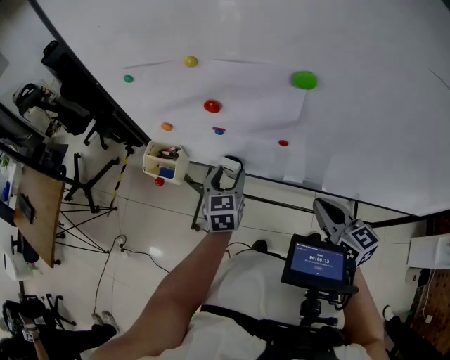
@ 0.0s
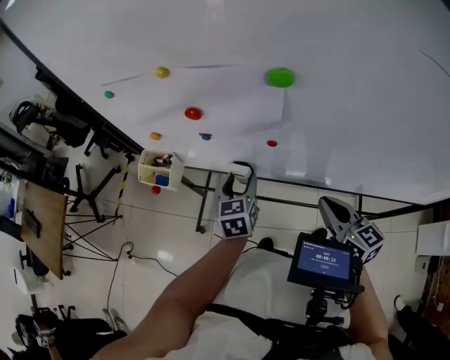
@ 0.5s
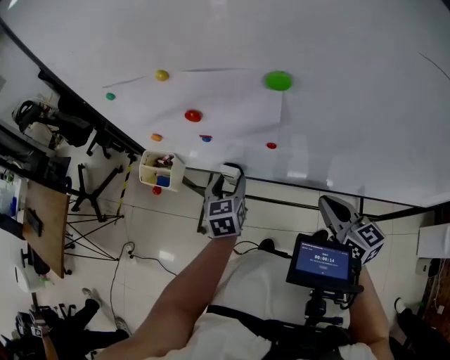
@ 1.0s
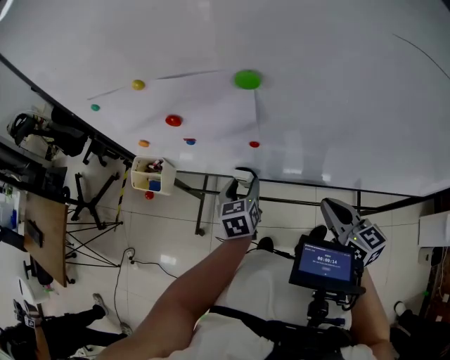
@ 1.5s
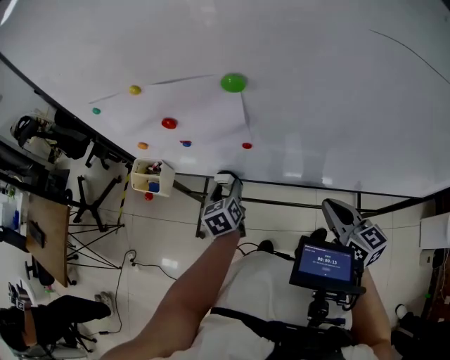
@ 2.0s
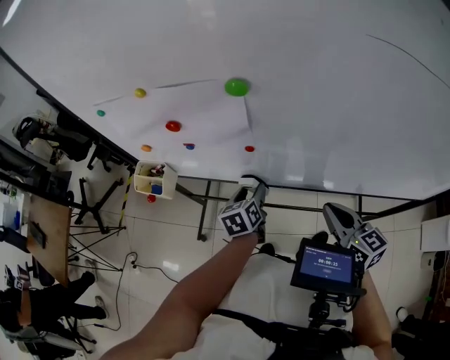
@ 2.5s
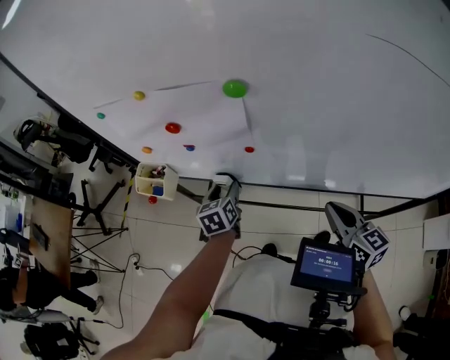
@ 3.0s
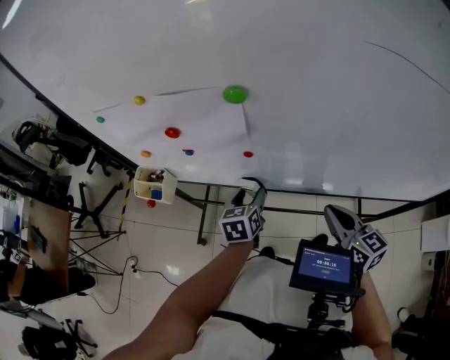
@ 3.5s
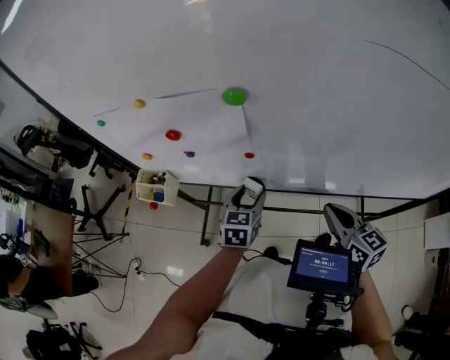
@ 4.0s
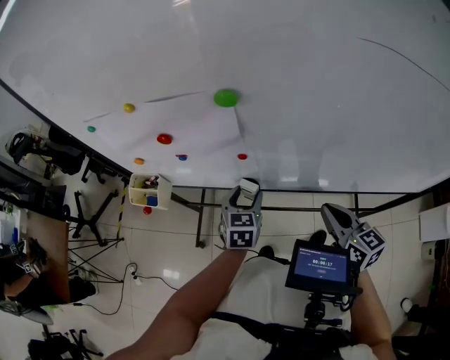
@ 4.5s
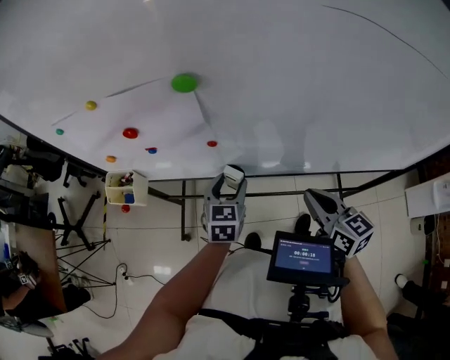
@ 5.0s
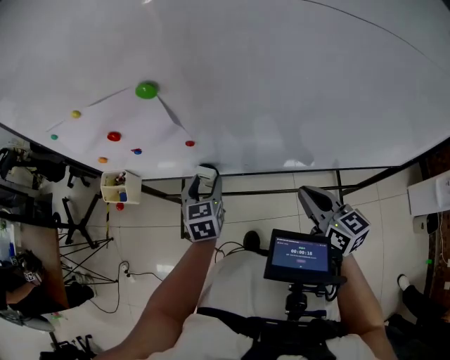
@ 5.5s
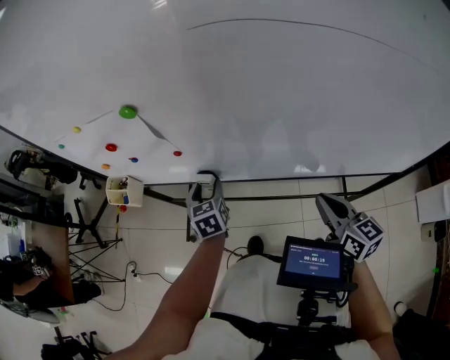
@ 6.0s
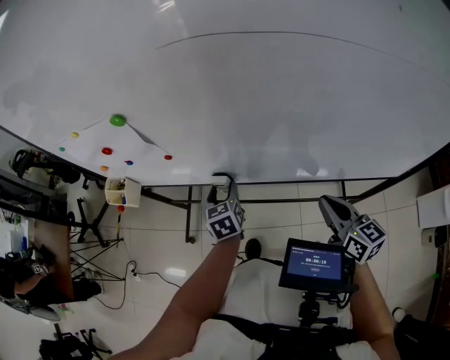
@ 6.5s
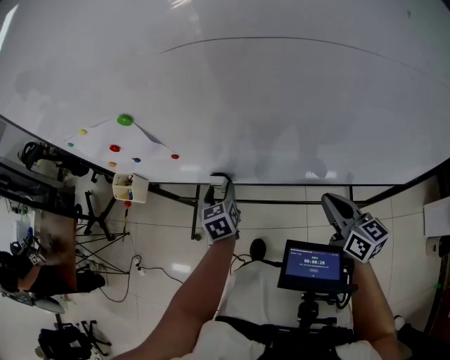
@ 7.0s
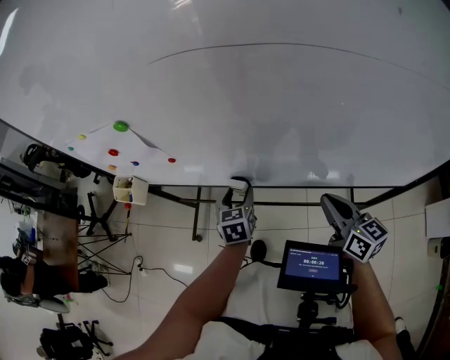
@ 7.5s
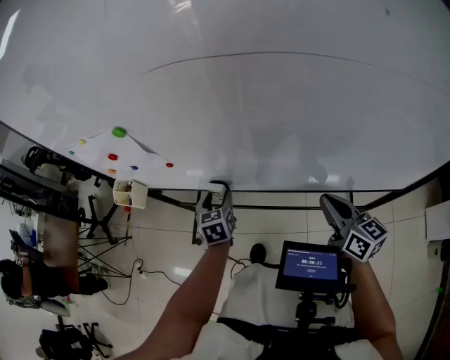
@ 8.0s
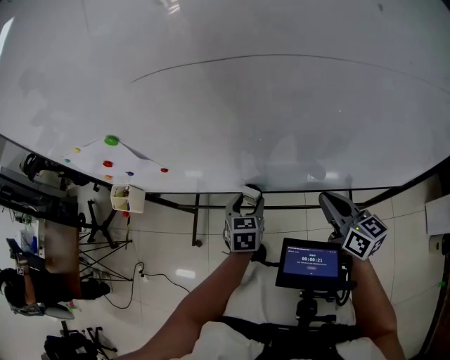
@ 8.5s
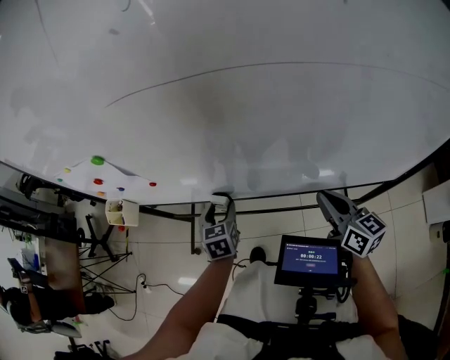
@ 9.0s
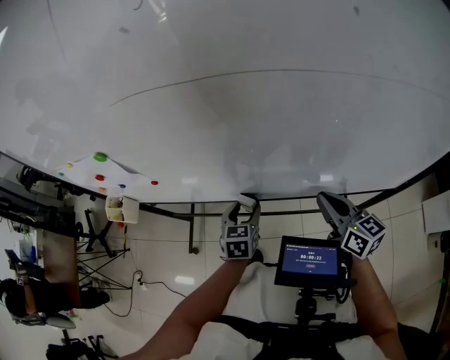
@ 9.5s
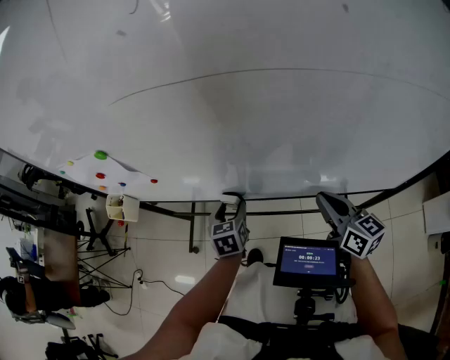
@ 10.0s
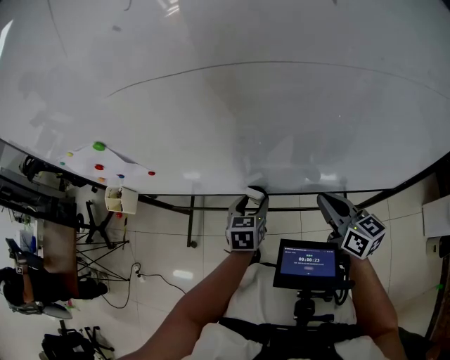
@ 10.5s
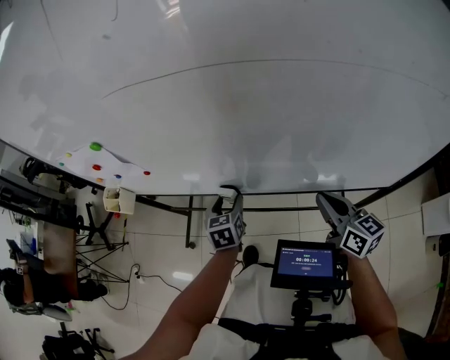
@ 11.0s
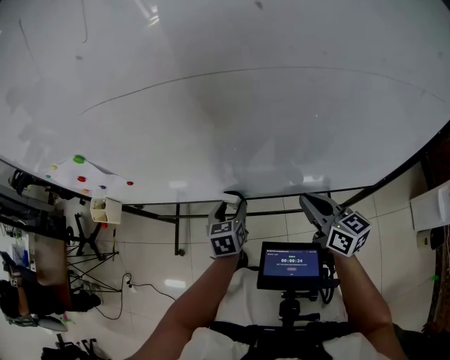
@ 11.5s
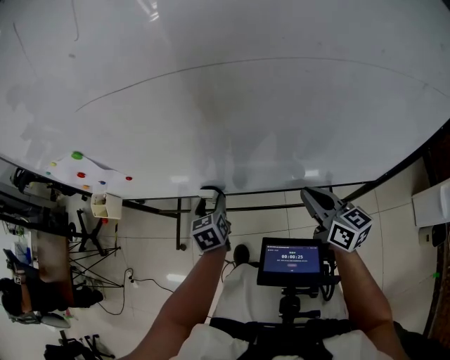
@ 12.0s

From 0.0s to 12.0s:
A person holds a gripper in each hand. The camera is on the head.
From 0.0s to 2.0s: The left gripper goes some 5 cm downward. Meanwhile the right gripper heads to the right, covering some 10 cm.
From 2.0s to 4.0s: The left gripper goes left and right, approximately 10 cm each way, reversing 2 times, and rotates roughly 30 degrees.
From 4.0s to 6.0s: The left gripper turns by about 20 degrees; the right gripper shifts about 15 cm to the right and backward.
From 6.0s to 8.0s: Both grippers move to the right, approximately 10 cm.
From 8.0s to 10.0s: The left gripper moves left and right over roughly 15 cm, changing direction 3 times.
From 10.0s to 12.0s: The left gripper moves left and right over about 10 cm, changing direction 3 times, while the right gripper shifts by some 5 cm.

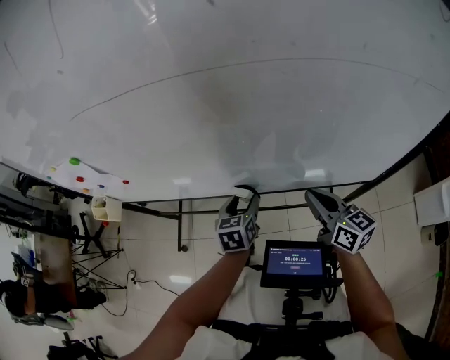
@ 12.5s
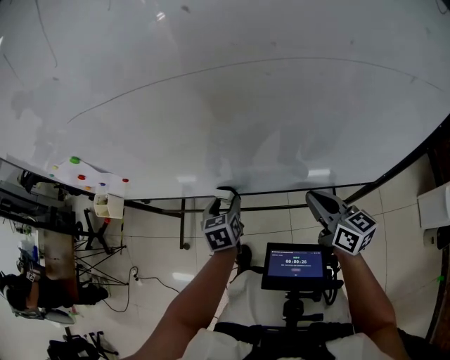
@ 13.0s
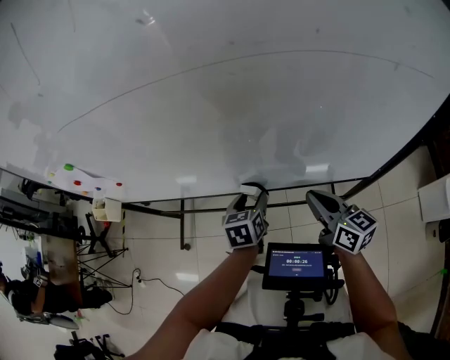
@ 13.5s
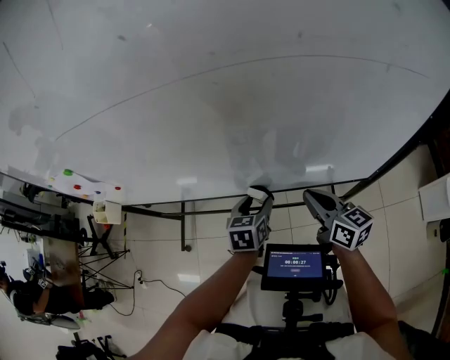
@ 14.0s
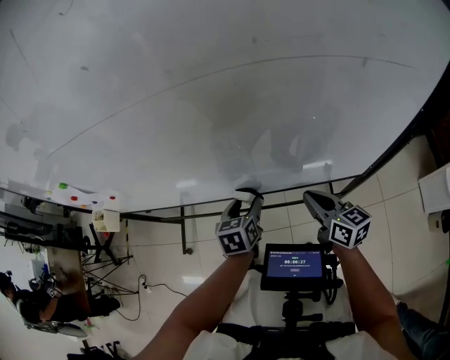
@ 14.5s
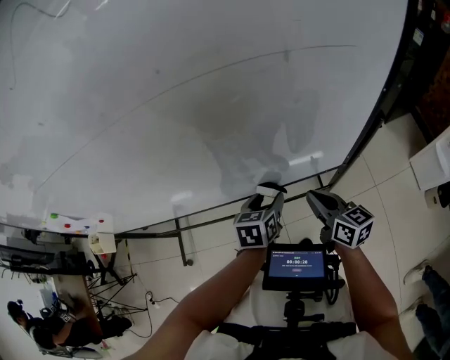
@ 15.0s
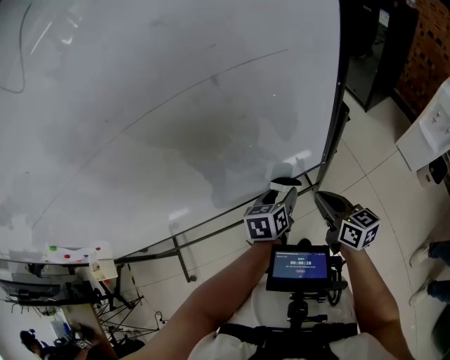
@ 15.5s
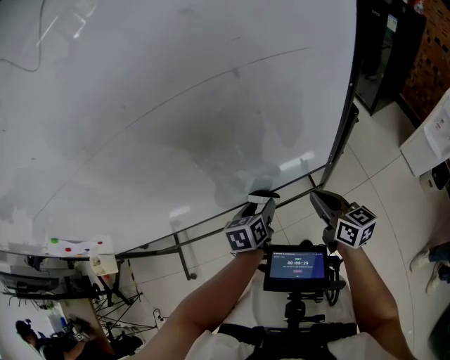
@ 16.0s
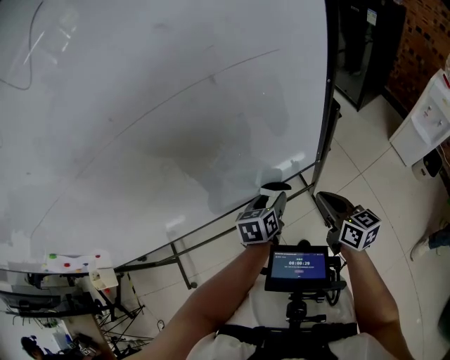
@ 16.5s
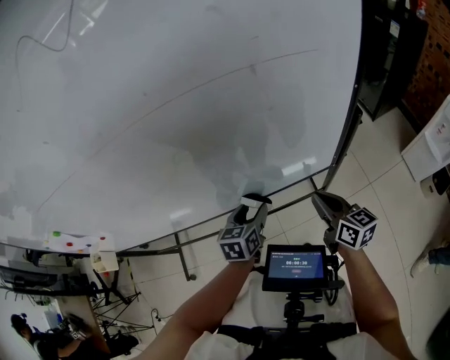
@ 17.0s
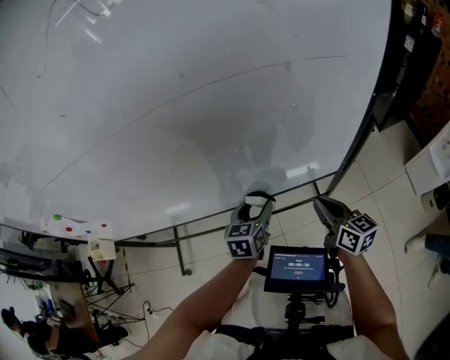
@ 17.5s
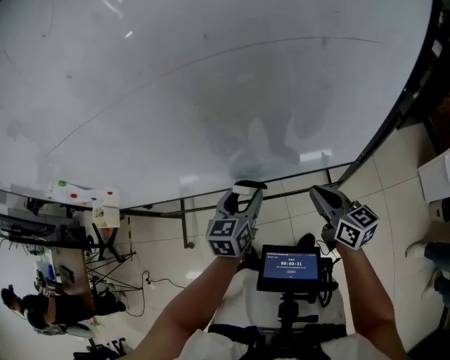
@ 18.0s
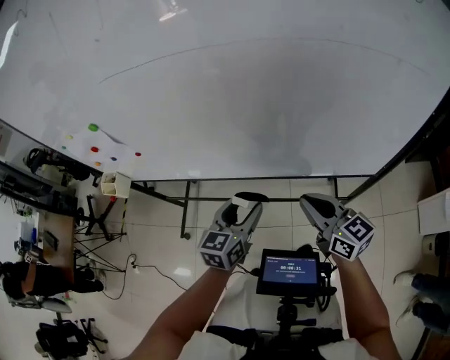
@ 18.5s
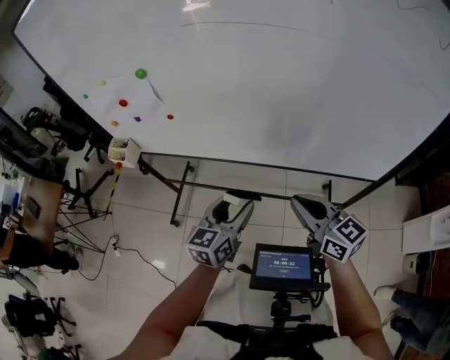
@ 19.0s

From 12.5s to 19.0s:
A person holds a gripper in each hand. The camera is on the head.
From 12.5s to 14.5s: The left gripper shifts approximately 10 cm to the right, while the right gripper goes about 10 cm to the right and downward.
From 14.5s to 17.0s: The right gripper changes place by roughly 15 cm. Meanwhile the left gripper changes its angle by about 20 degrees.
From 17.0s to 19.0s: The left gripper heads to the left and backward, covering roughly 35 cm, and turns by some 30 degrees, while the right gripper shifts about 35 cm to the left, and changes its angle by approximately 40 degrees.

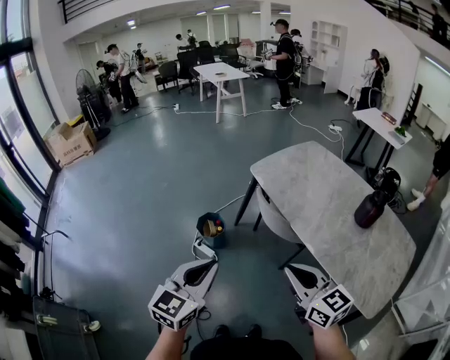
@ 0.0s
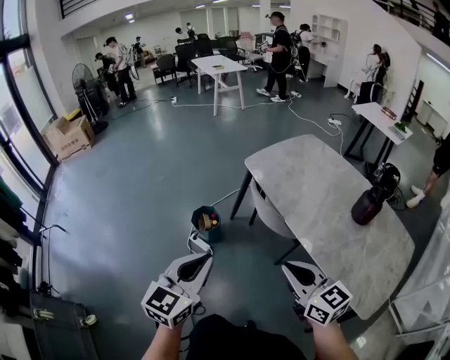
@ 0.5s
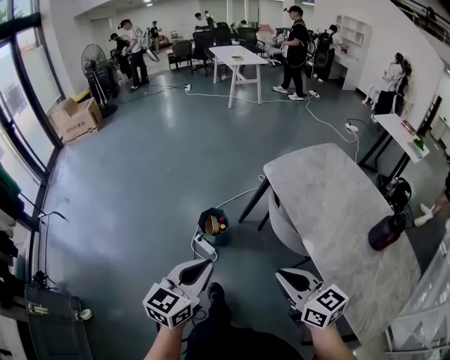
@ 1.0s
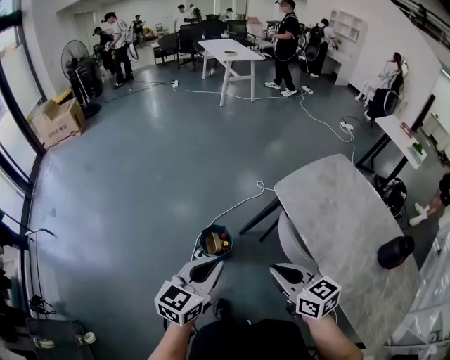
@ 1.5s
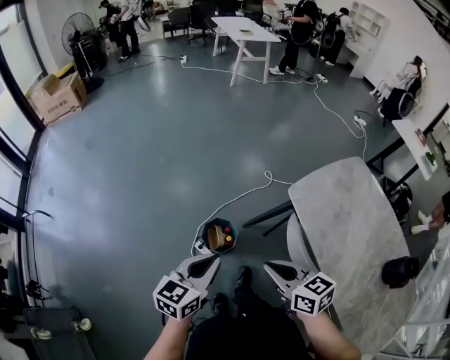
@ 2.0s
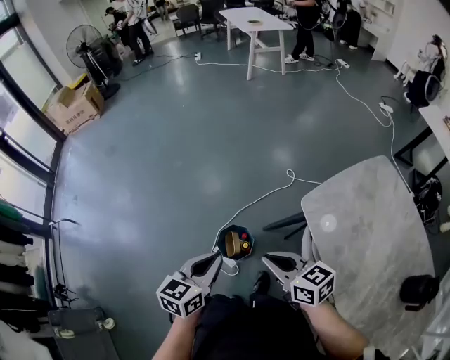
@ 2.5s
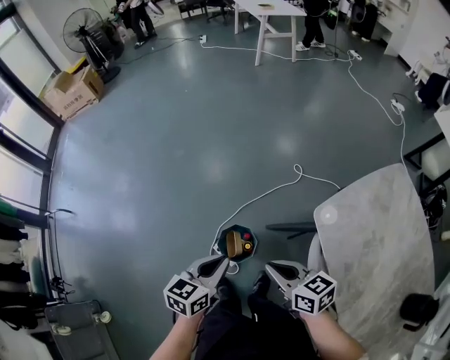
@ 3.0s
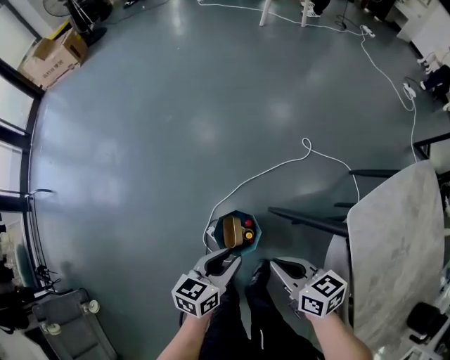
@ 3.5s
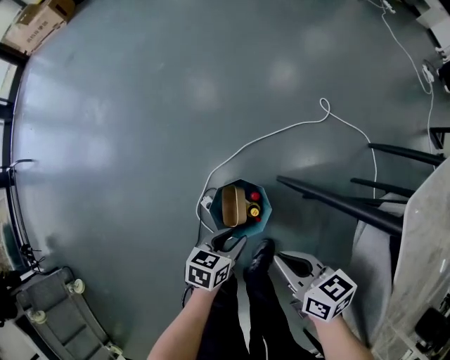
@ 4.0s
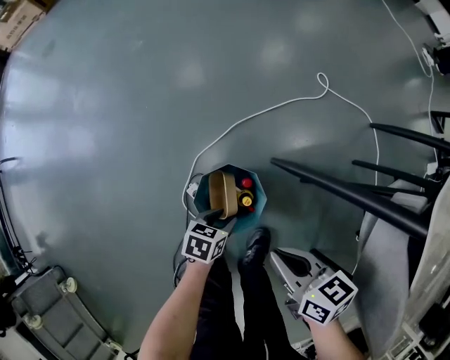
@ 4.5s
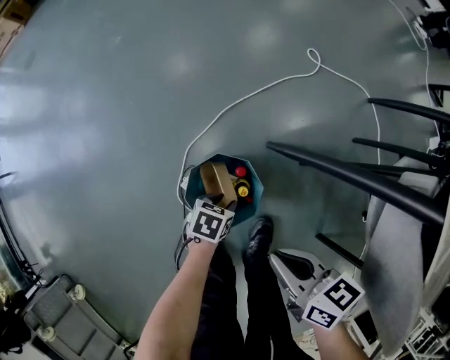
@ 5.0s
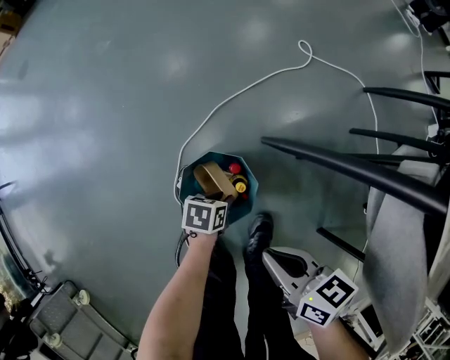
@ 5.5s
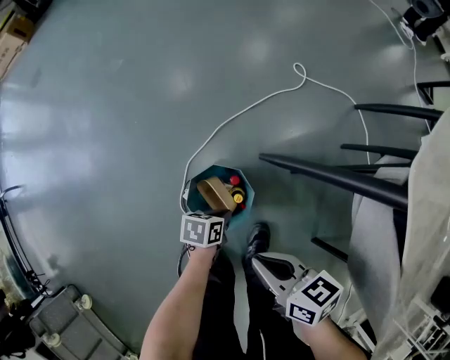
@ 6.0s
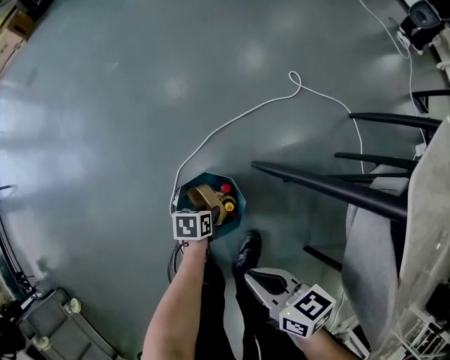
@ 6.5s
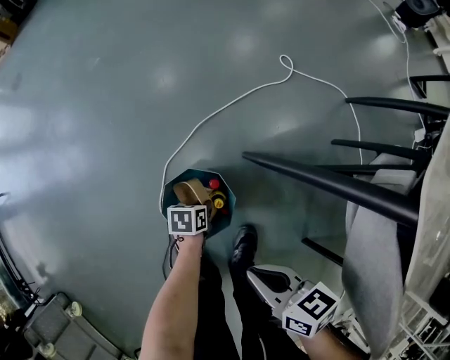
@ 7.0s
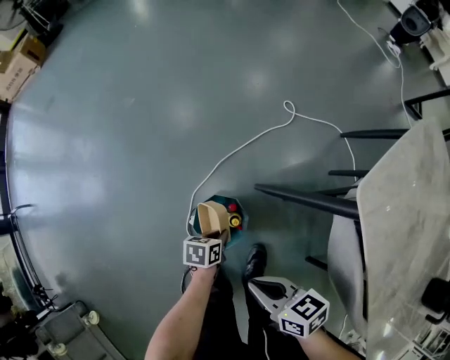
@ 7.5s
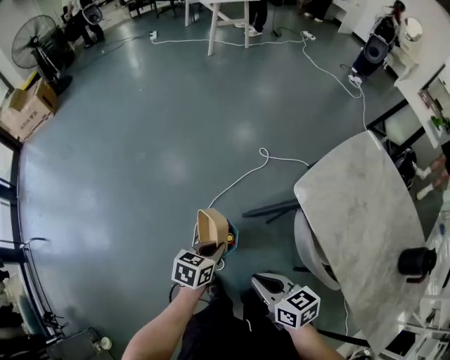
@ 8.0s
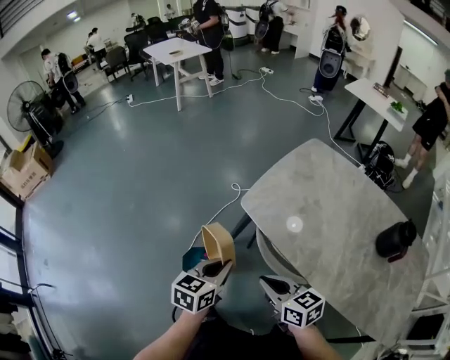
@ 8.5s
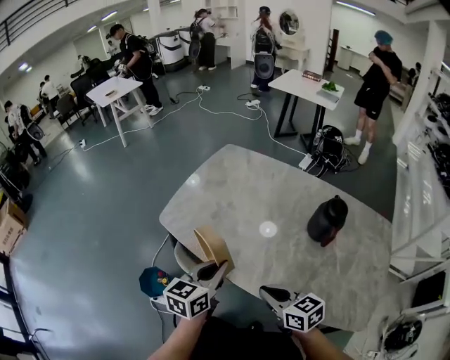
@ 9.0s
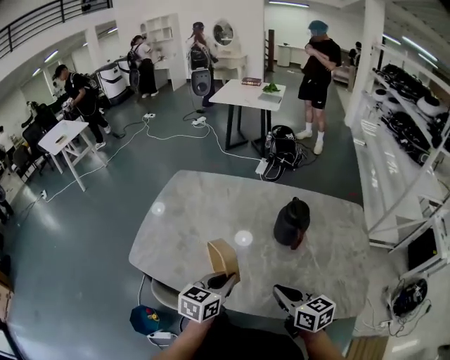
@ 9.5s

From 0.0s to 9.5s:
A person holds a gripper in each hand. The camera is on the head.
From 0.0s to 2.0s: The left gripper travels forward by roughly 35 cm, and swivels about 20 degrees. The right gripper travels forward and to the left by about 40 cm, and turns by roughly 30 degrees.
From 2.0s to 4.0s: The left gripper heads downward, covering some 50 cm, turns by about 40 degrees, and opens, while the right gripper moves downward and forward, approximately 40 cm, and swivels approximately 20 degrees.
From 4.0s to 5.5s: The left gripper heads downward, covering about 20 cm, and turns by some 20 degrees, while the right gripper shifts about 10 cm downward.
From 5.5s to 7.5s: The left gripper moves up and down over about 15 cm, changing direction 2 times, and closes up, while the right gripper is displaced upward by roughly 10 cm.
From 7.5s to 9.5s: The two grippers travel together, about 60 cm. The left gripper rolls clockwise, seen from behind, by approximately 60 degrees. Meanwhile the right gripper swivels roughly 70 degrees.
